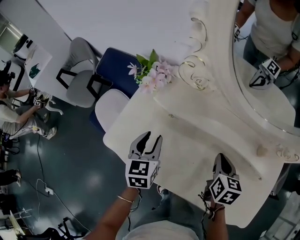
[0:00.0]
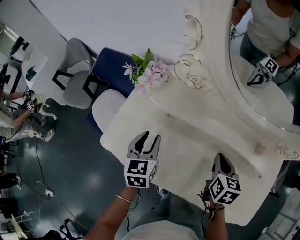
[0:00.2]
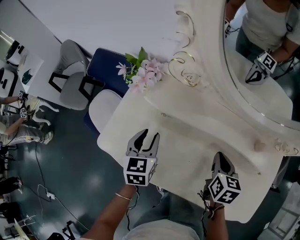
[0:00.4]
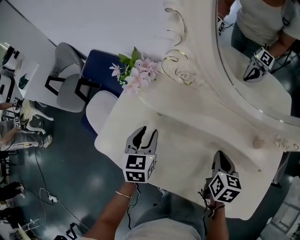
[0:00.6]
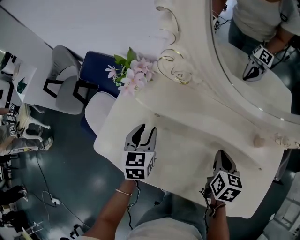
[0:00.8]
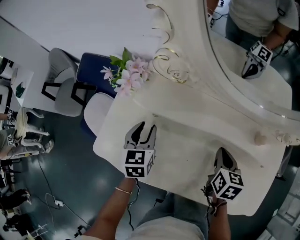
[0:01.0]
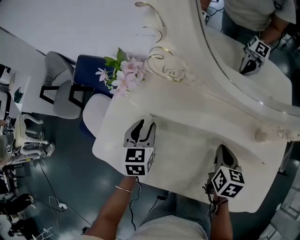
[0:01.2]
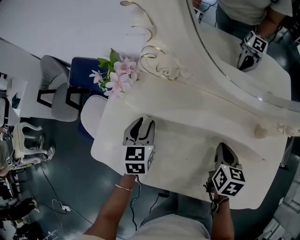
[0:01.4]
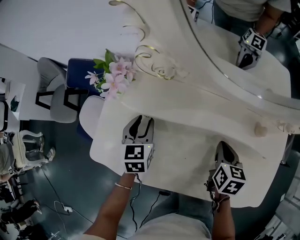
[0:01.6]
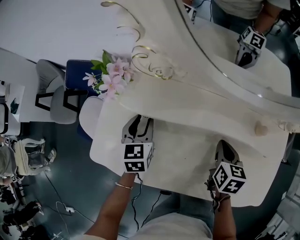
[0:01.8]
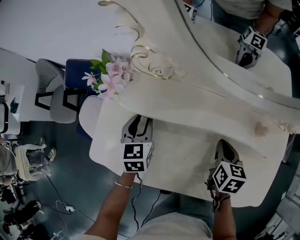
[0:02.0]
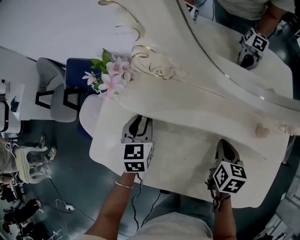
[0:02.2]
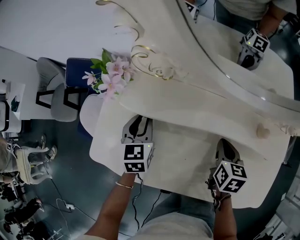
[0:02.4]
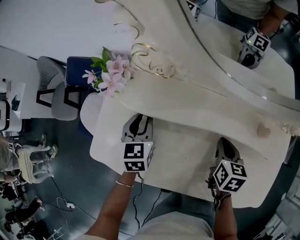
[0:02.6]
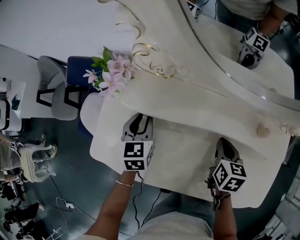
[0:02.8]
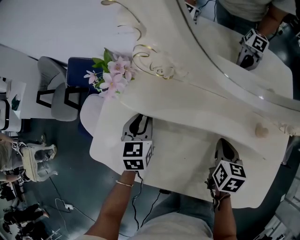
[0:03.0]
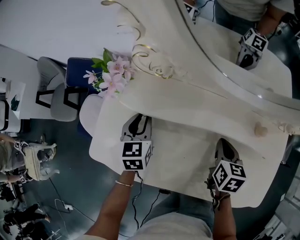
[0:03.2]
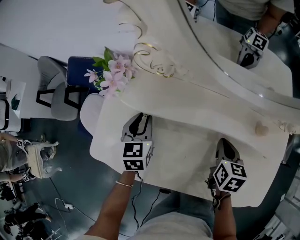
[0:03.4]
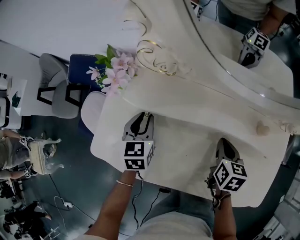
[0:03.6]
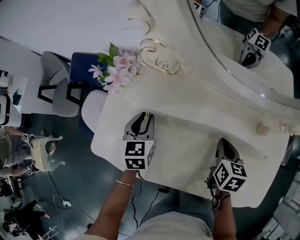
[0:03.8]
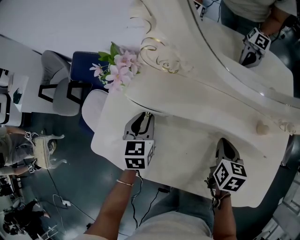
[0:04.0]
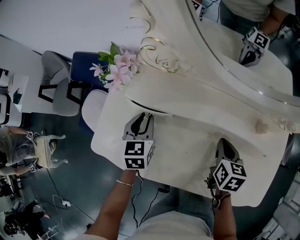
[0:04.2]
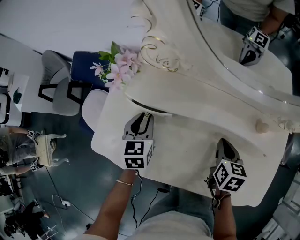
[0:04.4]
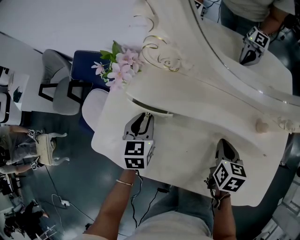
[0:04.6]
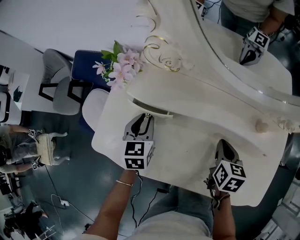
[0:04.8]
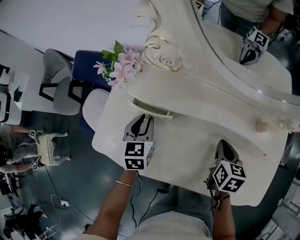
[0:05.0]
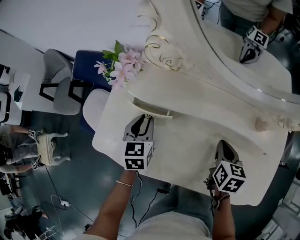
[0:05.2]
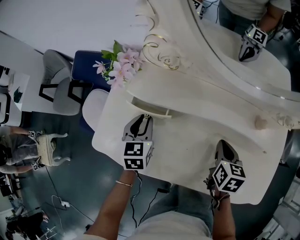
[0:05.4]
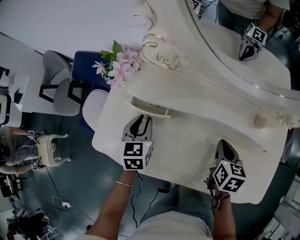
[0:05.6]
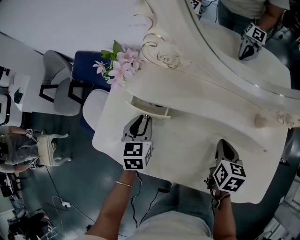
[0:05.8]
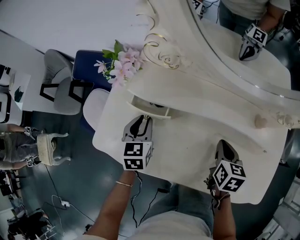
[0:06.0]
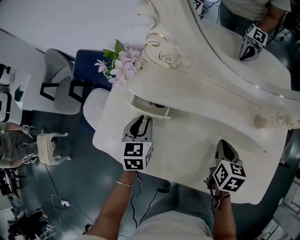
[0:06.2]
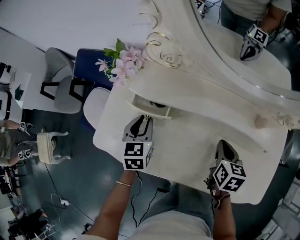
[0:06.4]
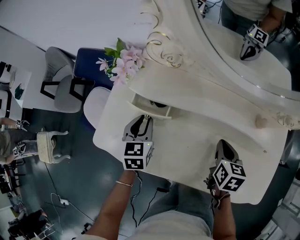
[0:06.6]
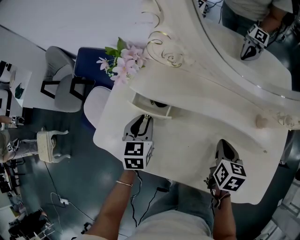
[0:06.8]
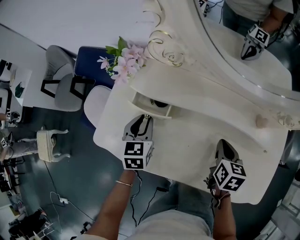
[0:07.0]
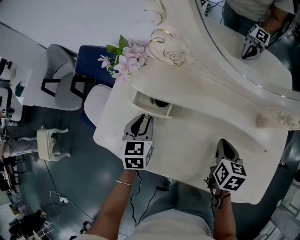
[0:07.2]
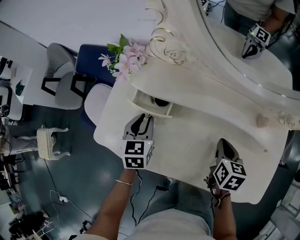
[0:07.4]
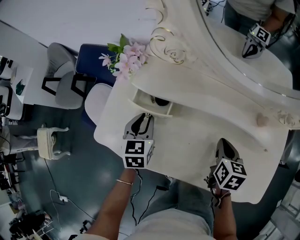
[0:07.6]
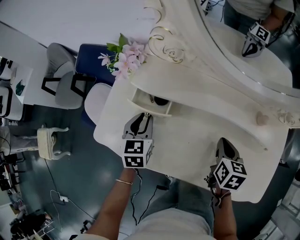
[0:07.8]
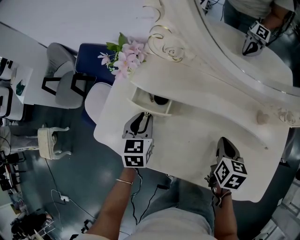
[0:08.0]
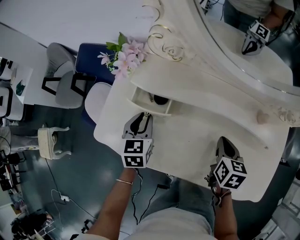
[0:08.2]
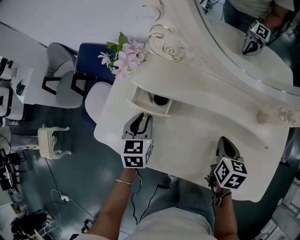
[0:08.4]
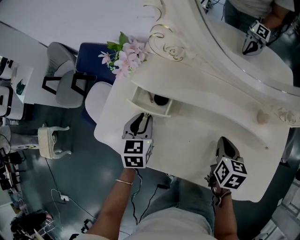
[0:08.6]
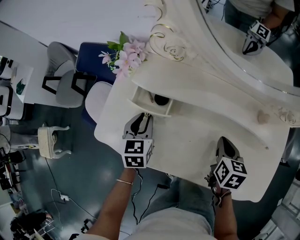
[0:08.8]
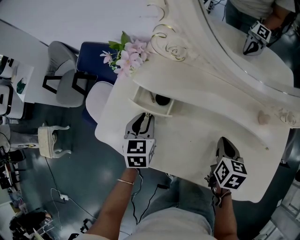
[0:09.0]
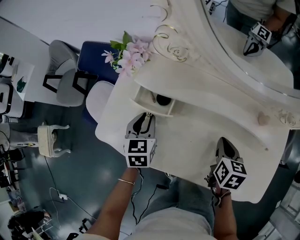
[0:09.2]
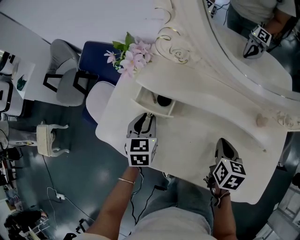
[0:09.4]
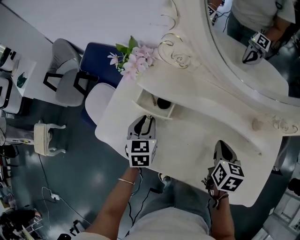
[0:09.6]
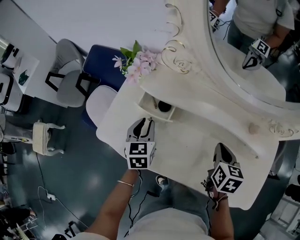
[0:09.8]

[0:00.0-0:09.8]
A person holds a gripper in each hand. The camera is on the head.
0:00.0 to 0:01.4: The right gripper changes place by roughly 5 cm. The left gripper is displaced forward by some 5 cm.
0:01.4 to 0:07.0: The grippers stay close to where they were, moving slightly.
0:07.0 to 0:08.4: Both grippers stay about where they are.
0:08.4 to 0:09.8: The grippers stay close to where they were, moving slightly.

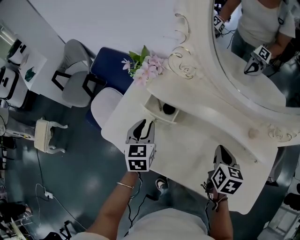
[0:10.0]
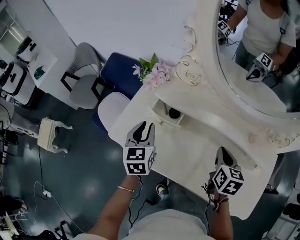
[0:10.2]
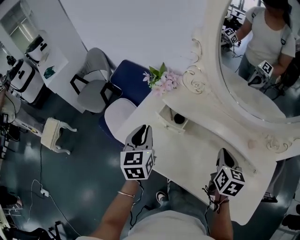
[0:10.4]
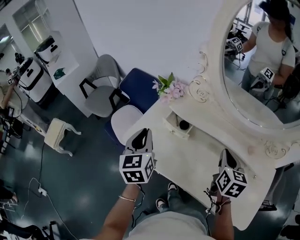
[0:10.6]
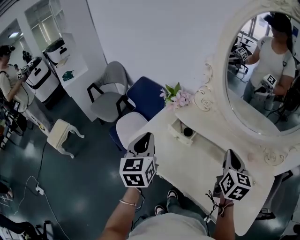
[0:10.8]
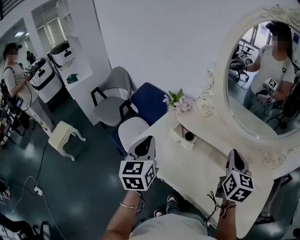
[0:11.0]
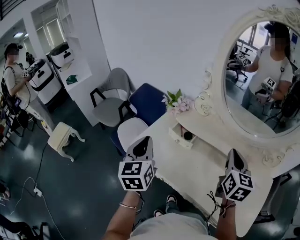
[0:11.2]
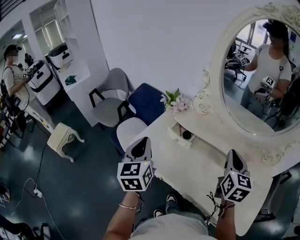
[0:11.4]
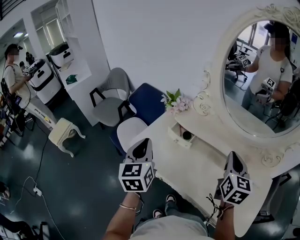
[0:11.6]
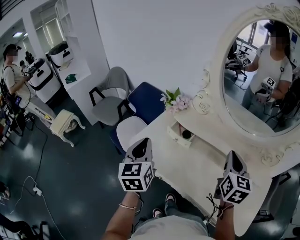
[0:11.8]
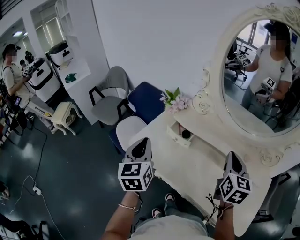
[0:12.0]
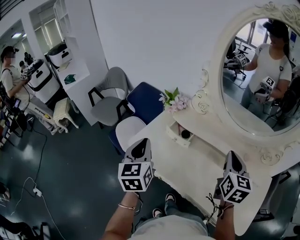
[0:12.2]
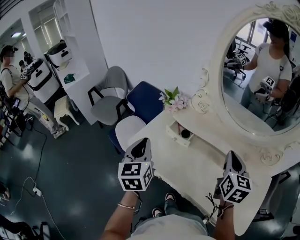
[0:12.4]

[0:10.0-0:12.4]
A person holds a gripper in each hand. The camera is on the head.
0:10.0 to 0:11.2: The right gripper is displaced upward by some 20 cm, and rotates roughly 30 degrees. Meanwhile the left gripper is displaced upward, backward and to the left by approximately 25 cm, swivels roughly 20 degrees, and closes its fingers.
0:11.2 to 0:12.4: The grippers stay close to where they were, moving slightly.

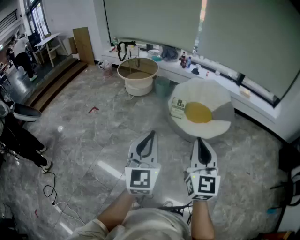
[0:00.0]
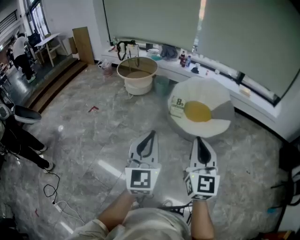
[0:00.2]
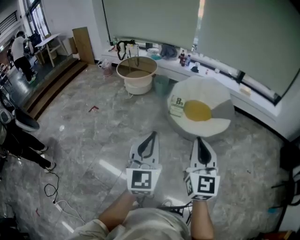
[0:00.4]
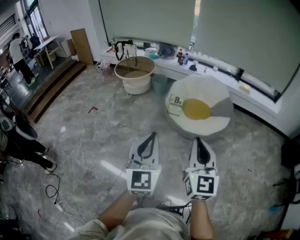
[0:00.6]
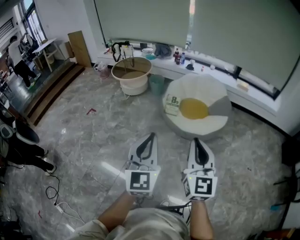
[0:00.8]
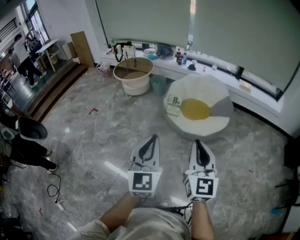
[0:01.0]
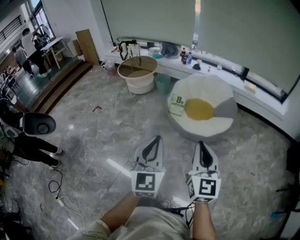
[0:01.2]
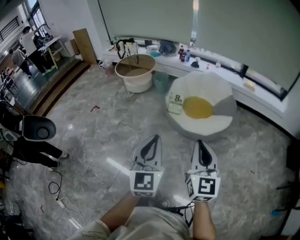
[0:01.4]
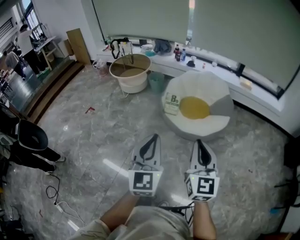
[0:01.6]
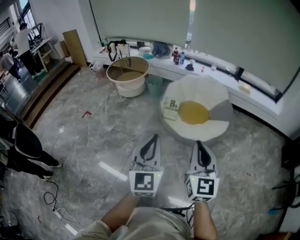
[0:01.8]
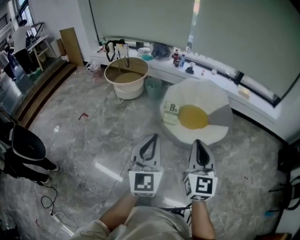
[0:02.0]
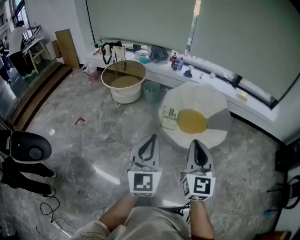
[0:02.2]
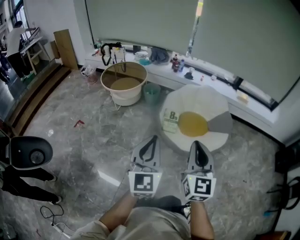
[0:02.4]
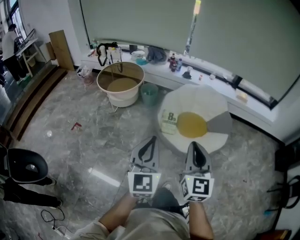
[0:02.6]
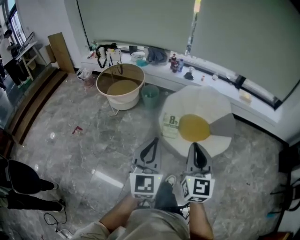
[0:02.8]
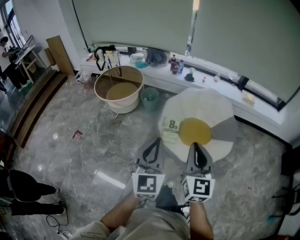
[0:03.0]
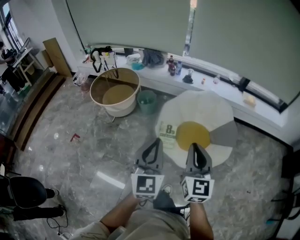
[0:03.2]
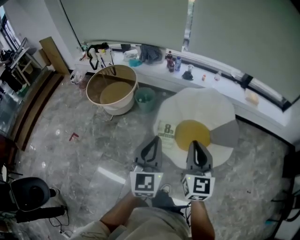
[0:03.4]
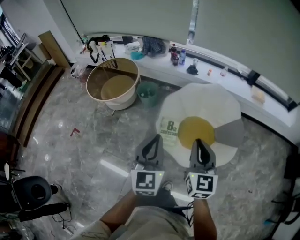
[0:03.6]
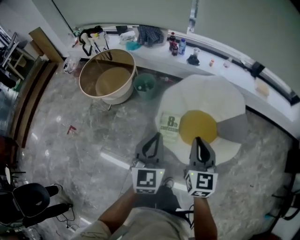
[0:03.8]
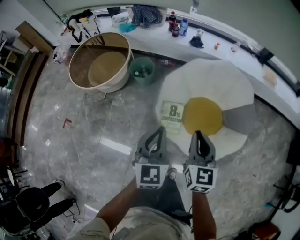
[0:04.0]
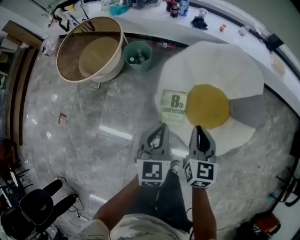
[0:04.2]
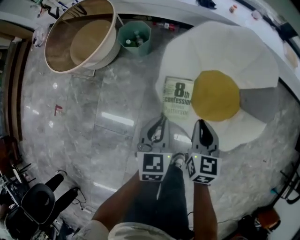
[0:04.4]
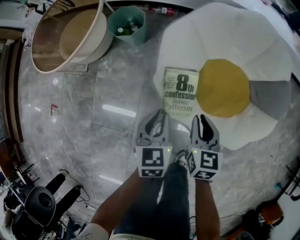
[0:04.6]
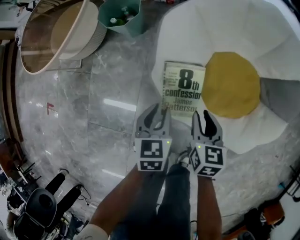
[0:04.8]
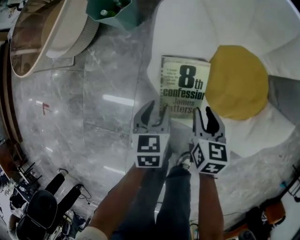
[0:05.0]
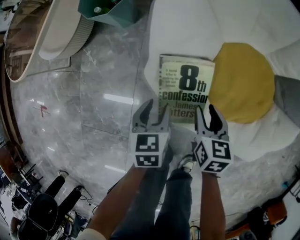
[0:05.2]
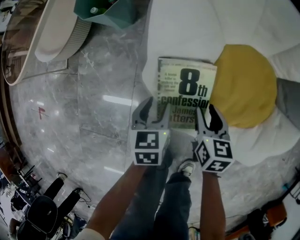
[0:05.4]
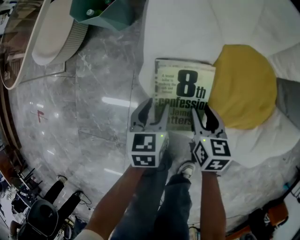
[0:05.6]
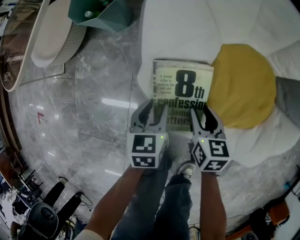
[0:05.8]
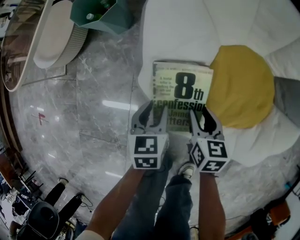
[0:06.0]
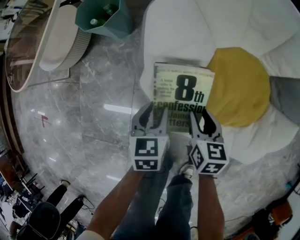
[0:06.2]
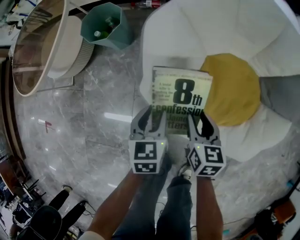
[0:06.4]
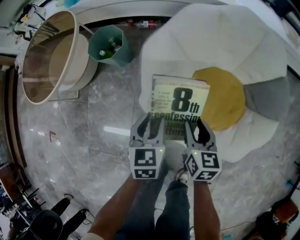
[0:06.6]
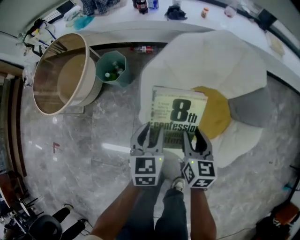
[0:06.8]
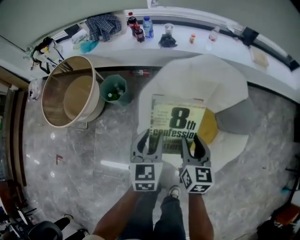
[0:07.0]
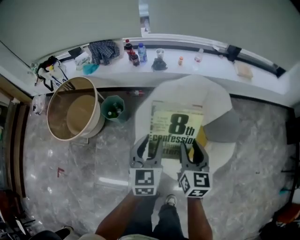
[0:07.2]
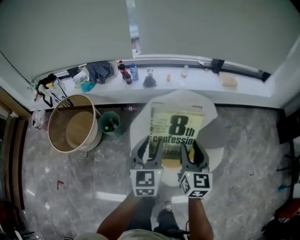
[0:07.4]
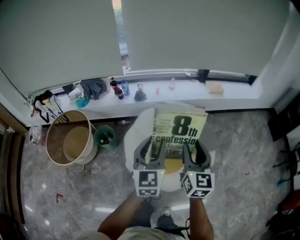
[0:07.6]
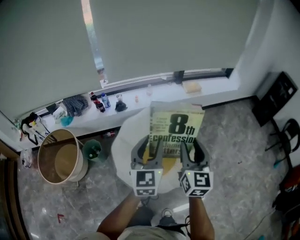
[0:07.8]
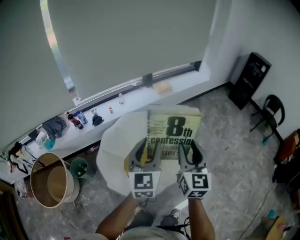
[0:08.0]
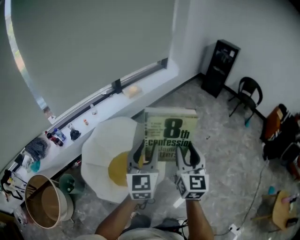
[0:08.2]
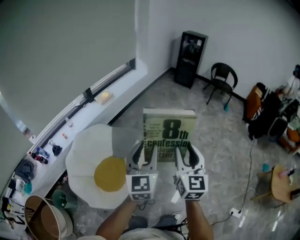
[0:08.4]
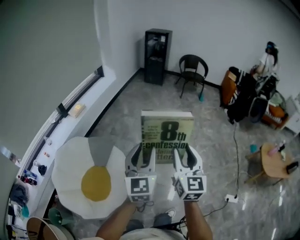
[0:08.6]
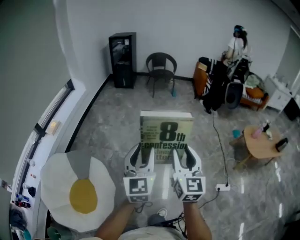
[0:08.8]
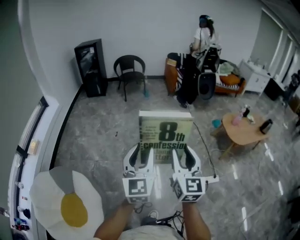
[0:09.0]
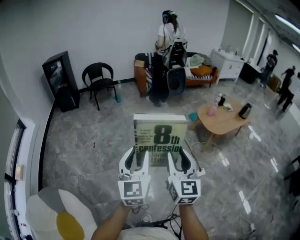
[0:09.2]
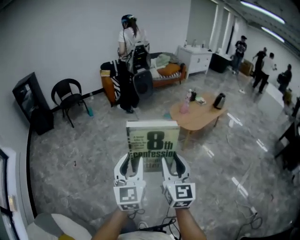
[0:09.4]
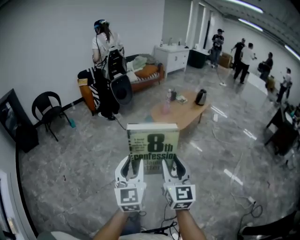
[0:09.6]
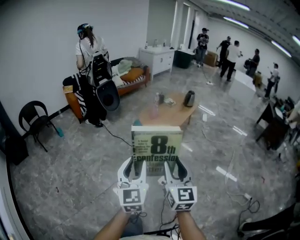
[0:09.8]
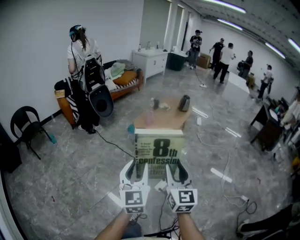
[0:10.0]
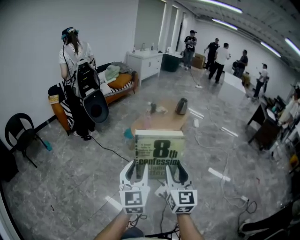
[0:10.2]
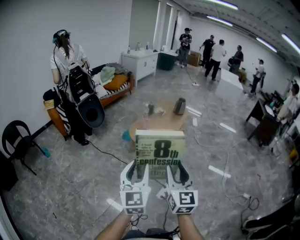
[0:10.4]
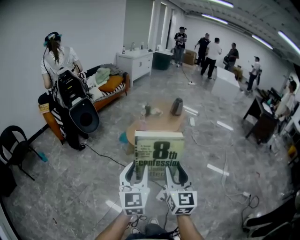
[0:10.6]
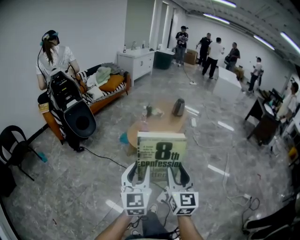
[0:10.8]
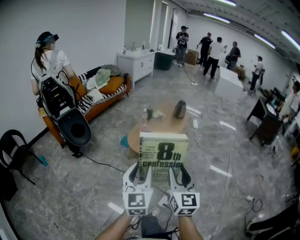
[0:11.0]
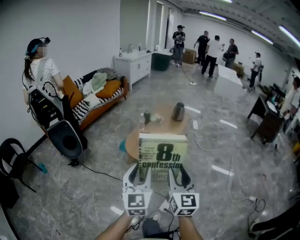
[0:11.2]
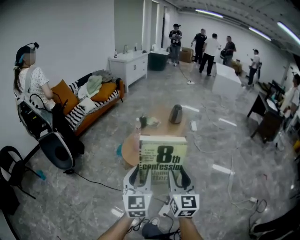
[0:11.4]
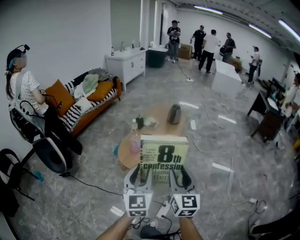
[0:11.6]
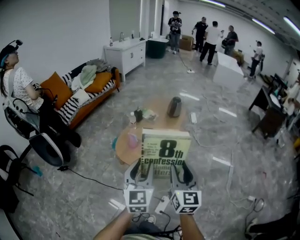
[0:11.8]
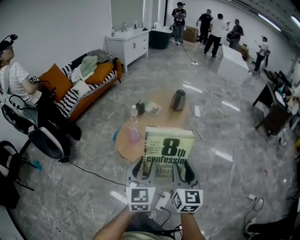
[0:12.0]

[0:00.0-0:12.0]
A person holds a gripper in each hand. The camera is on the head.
0:00.0 to 0:01.6: The grippers both shift to the right and forward by about 15 cm.
0:01.6 to 0:03.0: The grippers both shift forward by roughly 35 cm.
0:03.0 to 0:04.4: Both grippers move downward and forward, some 60 cm. The left gripper angles its fingers downward, by about 40 degrees, while the right gripper tips its fingers downward by about 30 degrees.
0:04.4 to 0:06.0: The grippers both shift downward by approximately 35 cm. The right gripper opens its fingers, while the left gripper opens.
0:06.0 to 0:07.6: The two grippers go roughly 70 cm upward. The left gripper points its fingers approximately 40 degrees further upward; the right gripper tips its fingers upward by about 40 degrees.
0:07.6 to 0:09.0: Both grippers are carried about 90 cm. The right gripper changes its angle by roughly 90 degrees. The left gripper turns by roughly 90 degrees.
0:09.0 to 0:10.4: Both grippers are carried about 50 cm. The left gripper rotates roughly 50 degrees, while the right gripper swivels roughly 50 degrees.
0:10.4 to 0:12.0: The grippers both shift forward by approximately 35 cm.
